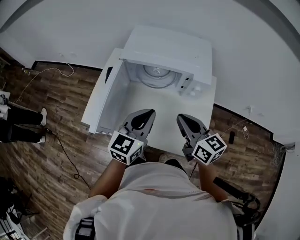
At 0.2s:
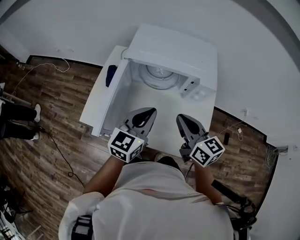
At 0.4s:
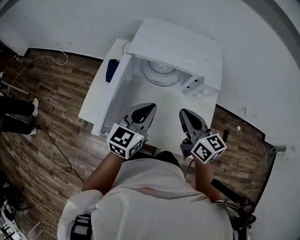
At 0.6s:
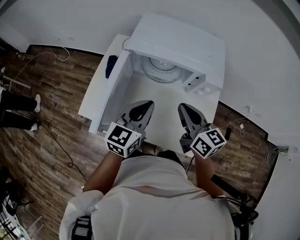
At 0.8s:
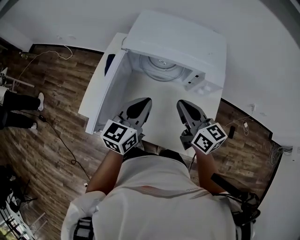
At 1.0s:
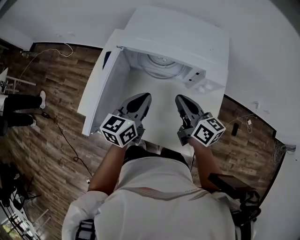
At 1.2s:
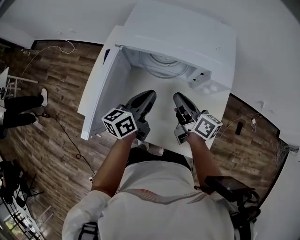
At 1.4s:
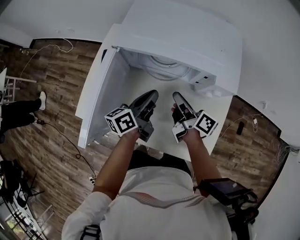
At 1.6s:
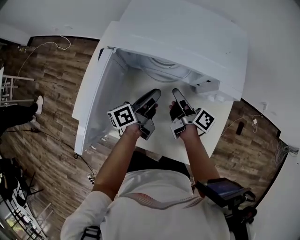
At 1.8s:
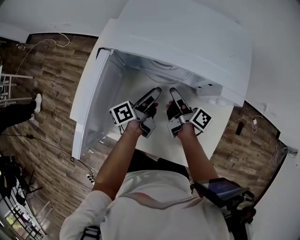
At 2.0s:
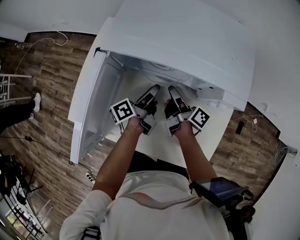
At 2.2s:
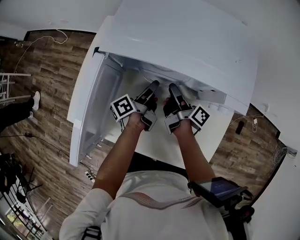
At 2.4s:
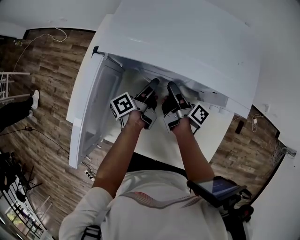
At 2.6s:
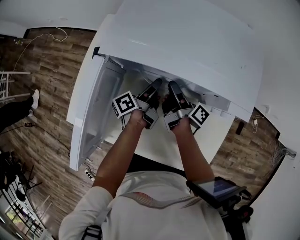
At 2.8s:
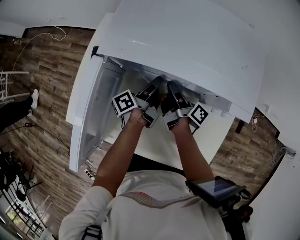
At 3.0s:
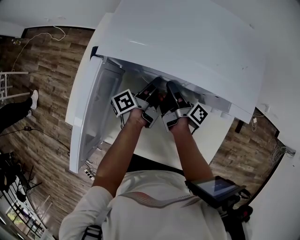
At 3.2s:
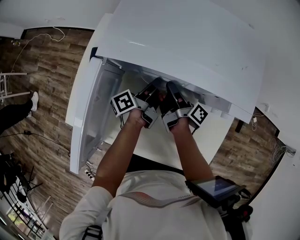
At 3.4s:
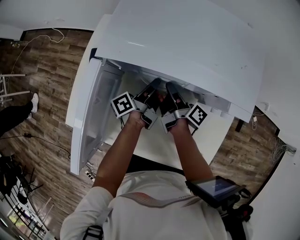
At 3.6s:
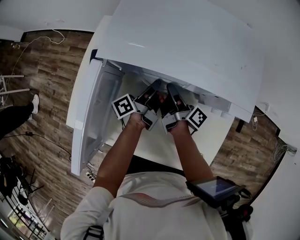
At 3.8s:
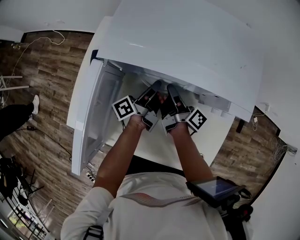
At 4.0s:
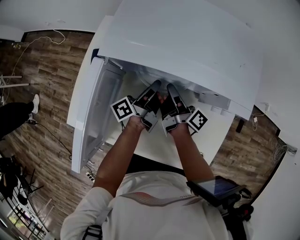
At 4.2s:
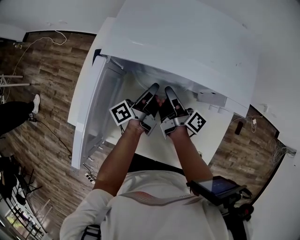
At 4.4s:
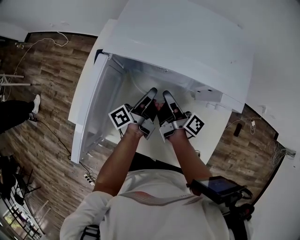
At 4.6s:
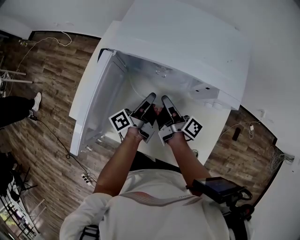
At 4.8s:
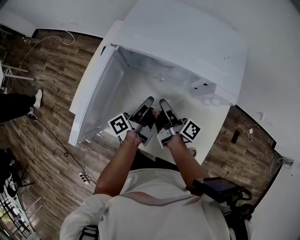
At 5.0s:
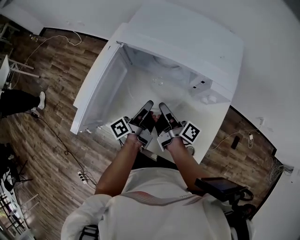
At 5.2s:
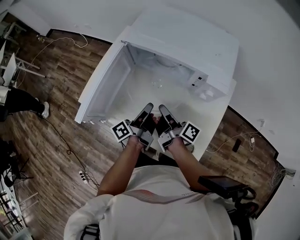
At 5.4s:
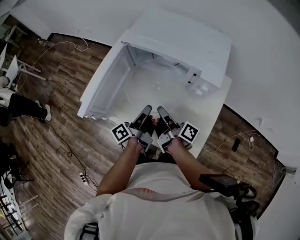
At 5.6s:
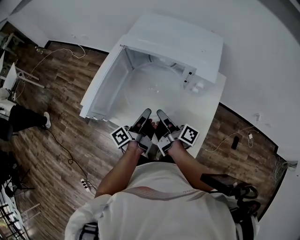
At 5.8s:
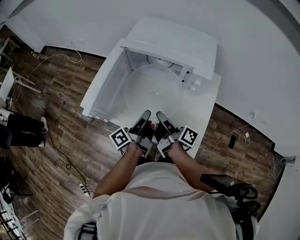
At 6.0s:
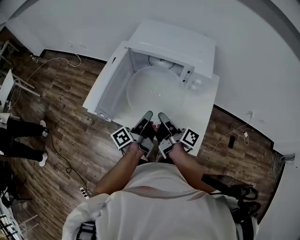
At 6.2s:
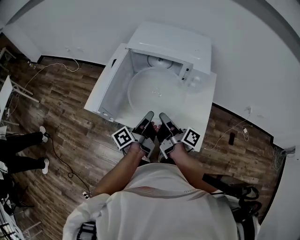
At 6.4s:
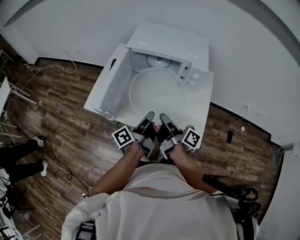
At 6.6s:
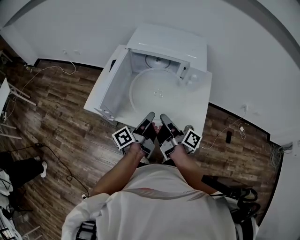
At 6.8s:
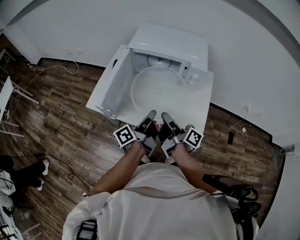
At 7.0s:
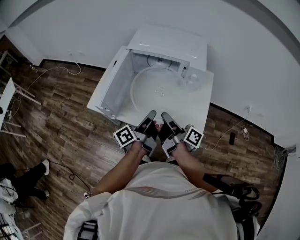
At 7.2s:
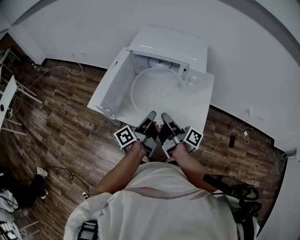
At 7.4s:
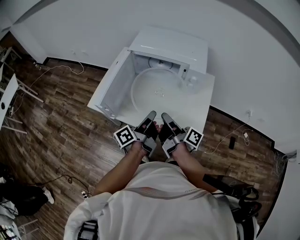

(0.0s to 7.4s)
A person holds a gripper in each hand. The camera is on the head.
0.0s - 1.4s: Both grippers move downward and forward, roughly 25 cm. The left gripper rolls counterclockwise, seen from behind, by roughly 50 degrees. Meanwhile the right gripper twists some 50 degrees clockwise, seen from behind, and opens.
1.4s - 3.0s: Both grippers travel together downward and forward, approximately 15 cm. The left gripper turns by some 30 degrees, and opens up. Meanwhile the right gripper swivels roughly 30 degrees, and opens, then closes again.
3.0s - 4.4s: The grippers both shift upward by roughly 5 cm.
4.4s - 6.0s: The grippers both shift backward and upward by about 25 cm.
6.0s - 7.4s: Both grippers move backward, approximately 10 cm.

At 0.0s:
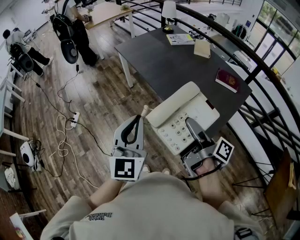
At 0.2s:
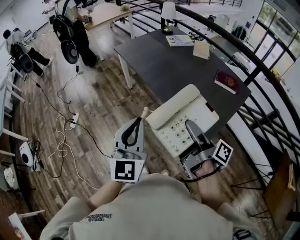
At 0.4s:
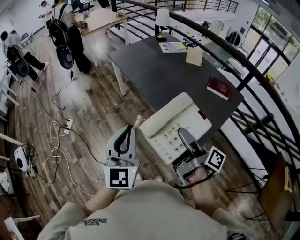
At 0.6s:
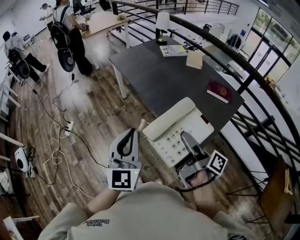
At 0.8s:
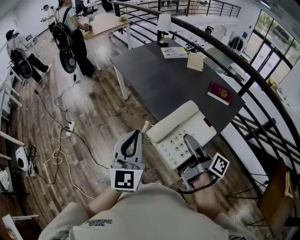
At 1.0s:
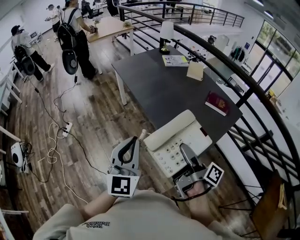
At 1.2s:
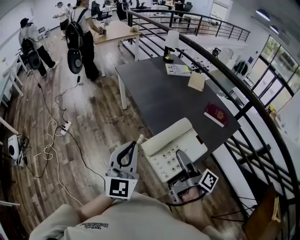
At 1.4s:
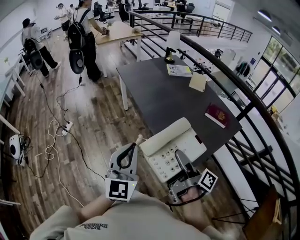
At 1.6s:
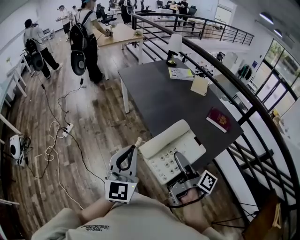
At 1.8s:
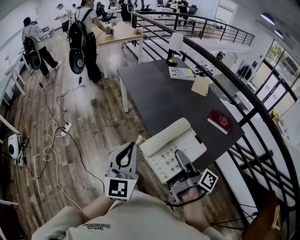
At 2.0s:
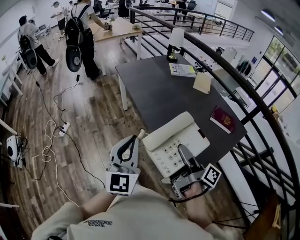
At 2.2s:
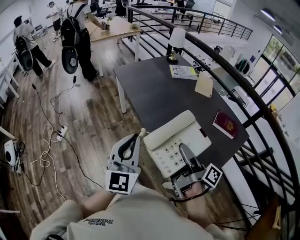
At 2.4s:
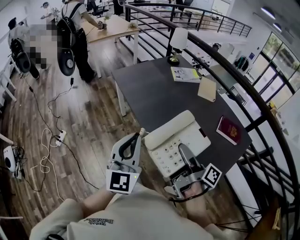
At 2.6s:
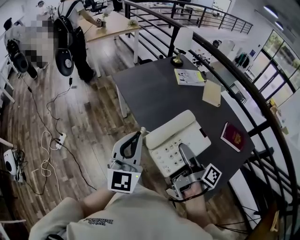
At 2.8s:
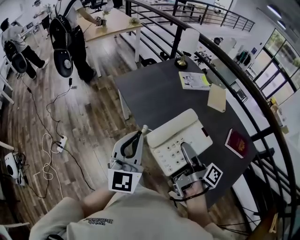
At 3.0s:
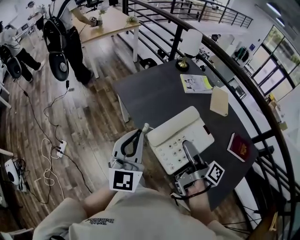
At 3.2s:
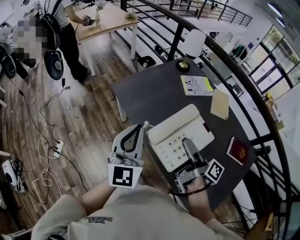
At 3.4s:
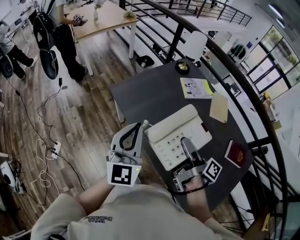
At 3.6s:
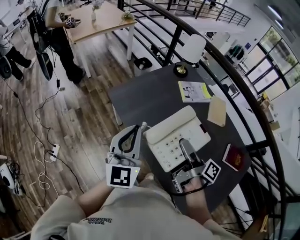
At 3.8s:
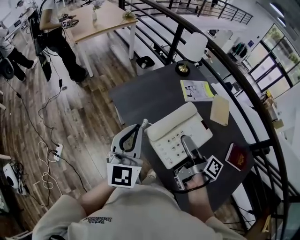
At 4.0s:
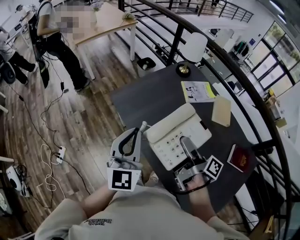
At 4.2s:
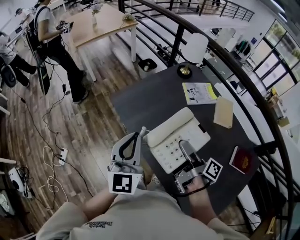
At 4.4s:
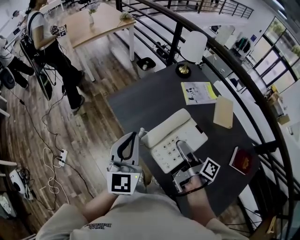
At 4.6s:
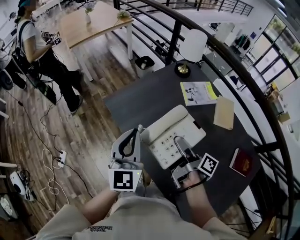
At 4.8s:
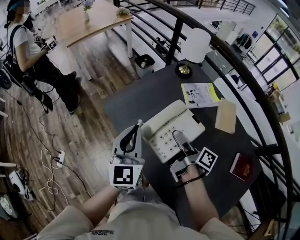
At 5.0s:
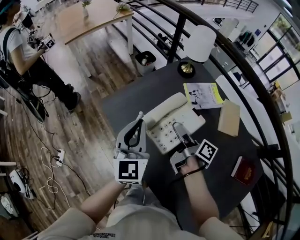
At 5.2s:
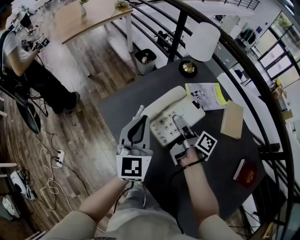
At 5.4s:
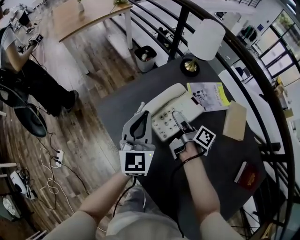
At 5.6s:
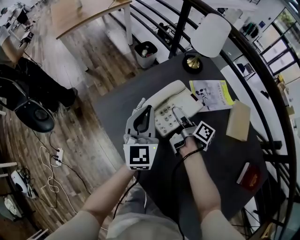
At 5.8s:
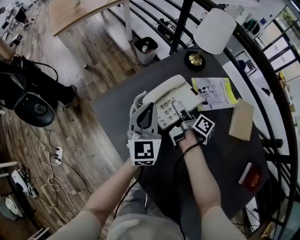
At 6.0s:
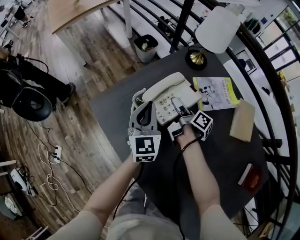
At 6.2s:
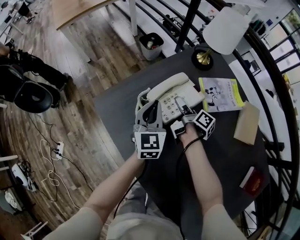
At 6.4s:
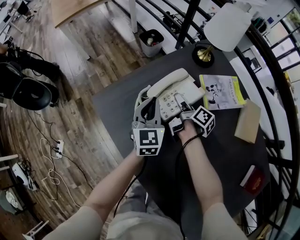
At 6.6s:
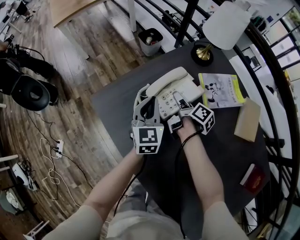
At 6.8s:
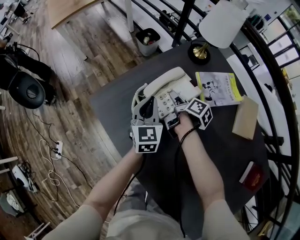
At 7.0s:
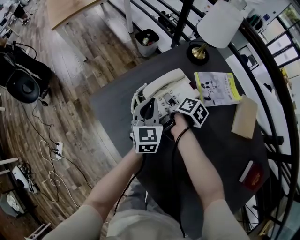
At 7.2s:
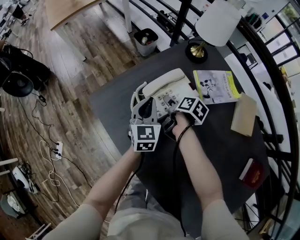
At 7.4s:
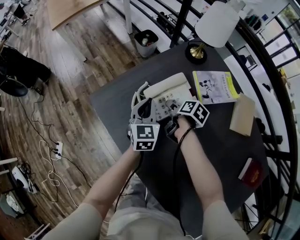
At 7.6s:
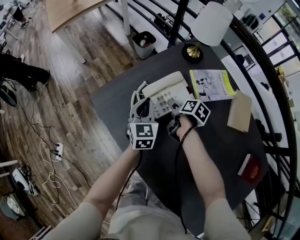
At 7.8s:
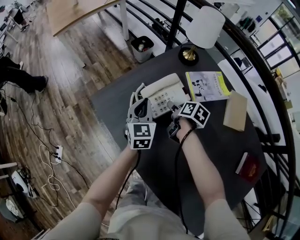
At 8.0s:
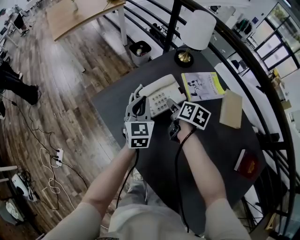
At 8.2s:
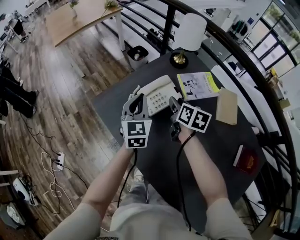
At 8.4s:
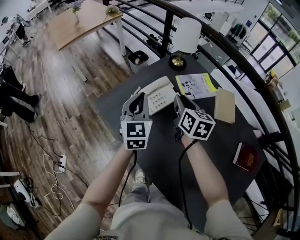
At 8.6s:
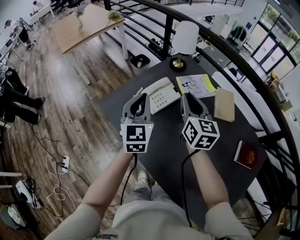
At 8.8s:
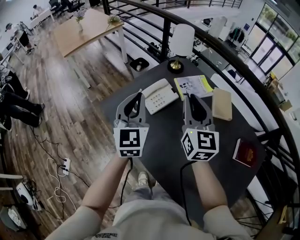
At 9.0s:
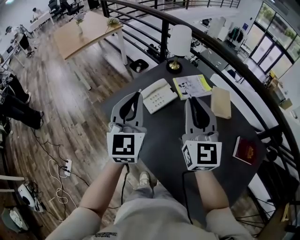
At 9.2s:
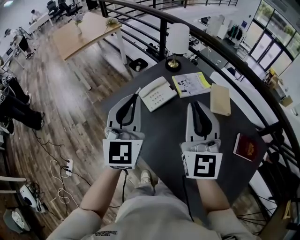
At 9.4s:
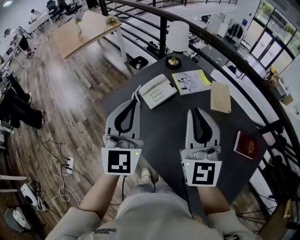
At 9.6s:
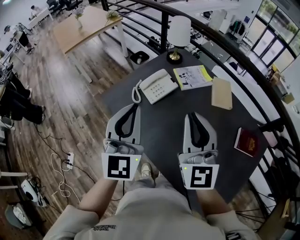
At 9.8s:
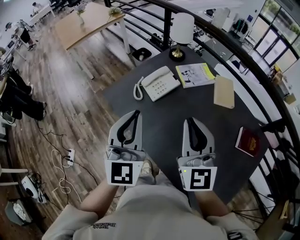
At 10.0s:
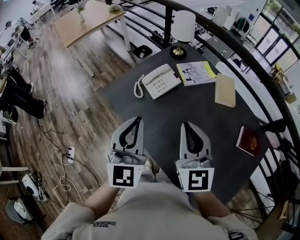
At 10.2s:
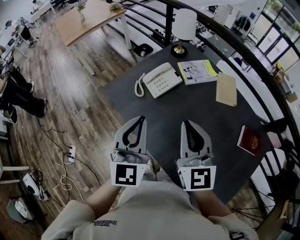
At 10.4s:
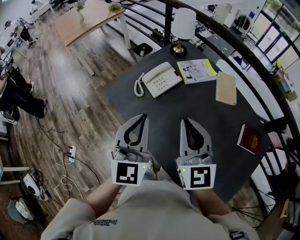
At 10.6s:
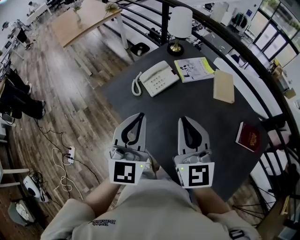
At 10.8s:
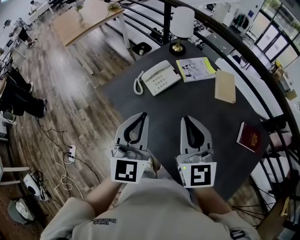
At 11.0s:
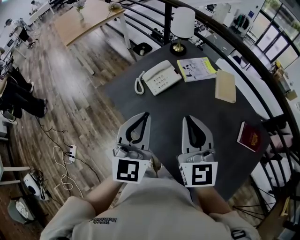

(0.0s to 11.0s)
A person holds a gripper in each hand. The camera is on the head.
0.0s - 1.6s: Both grippers travel together to the right, approximately 5 cm.
1.6s - 3.2s: Both grippers are carried forward, approximately 50 cm.
3.2s - 4.8s: The grippers both shift forward by approximately 20 cm.
4.8s - 6.2s: The right gripper is displaced forward and downward by some 30 cm; the left gripper goes some 30 cm downward, forward and to the right.
6.2s - 7.8s: The right gripper is displaced backward by some 5 cm, tips its fingers downward by some 30 degrees, and opens up.
7.8s - 9.4s: Both grippers travel together upward and backward, some 50 cm. The left gripper swivels some 30 degrees, while the right gripper angles its fingers upward, by approximately 60 degrees, and closes.
9.4s - 11.0s: The left gripper moves downward and backward, about 10 cm. The right gripper moves downward, about 5 cm.

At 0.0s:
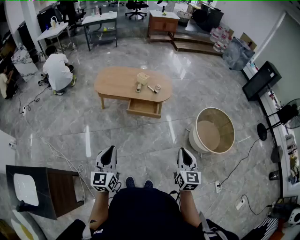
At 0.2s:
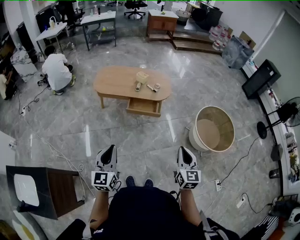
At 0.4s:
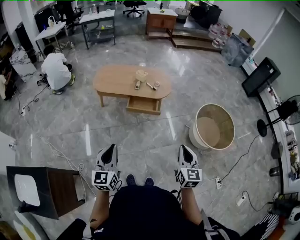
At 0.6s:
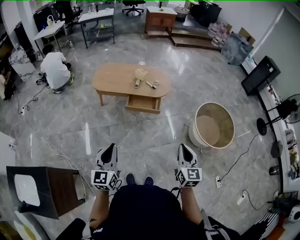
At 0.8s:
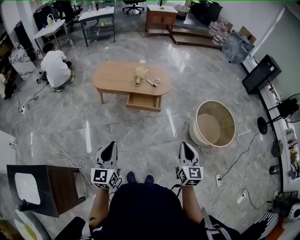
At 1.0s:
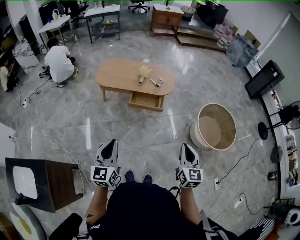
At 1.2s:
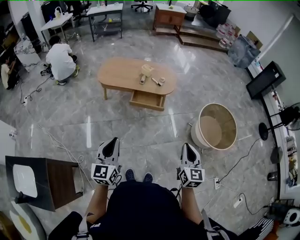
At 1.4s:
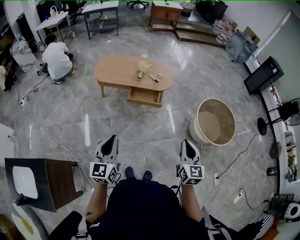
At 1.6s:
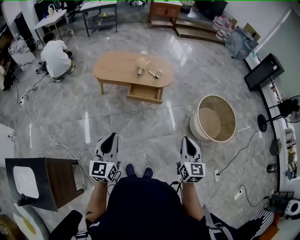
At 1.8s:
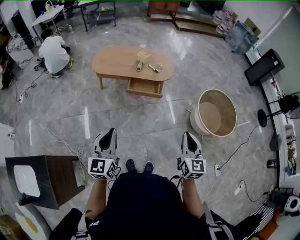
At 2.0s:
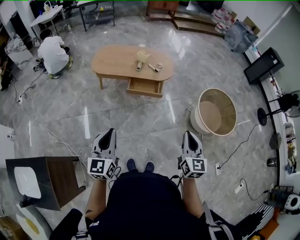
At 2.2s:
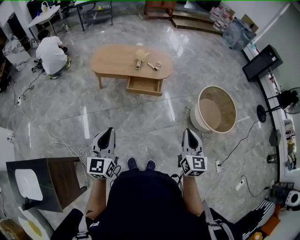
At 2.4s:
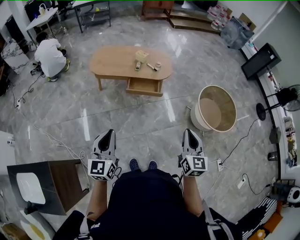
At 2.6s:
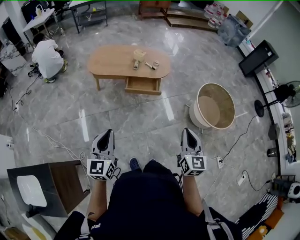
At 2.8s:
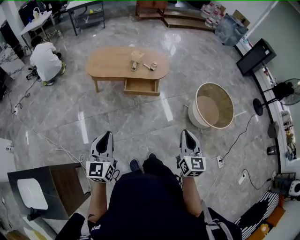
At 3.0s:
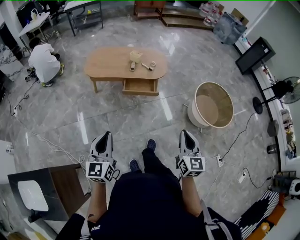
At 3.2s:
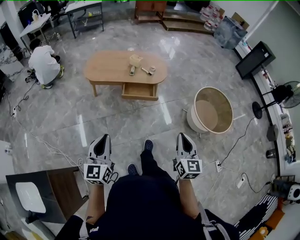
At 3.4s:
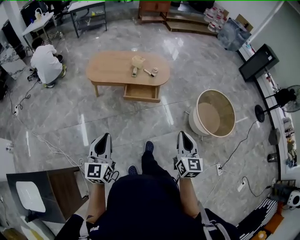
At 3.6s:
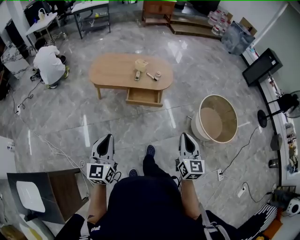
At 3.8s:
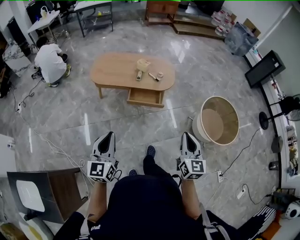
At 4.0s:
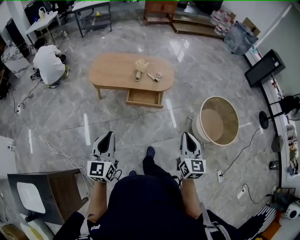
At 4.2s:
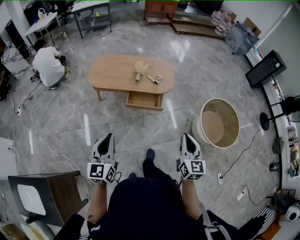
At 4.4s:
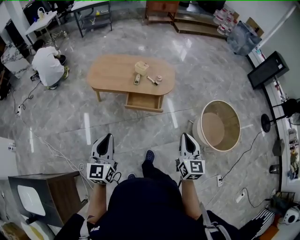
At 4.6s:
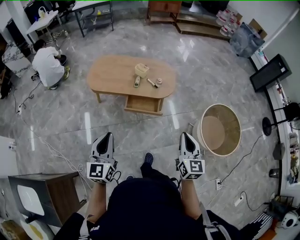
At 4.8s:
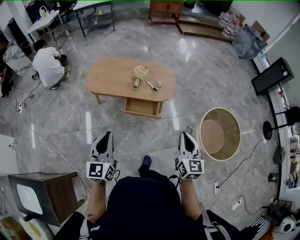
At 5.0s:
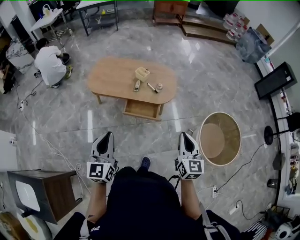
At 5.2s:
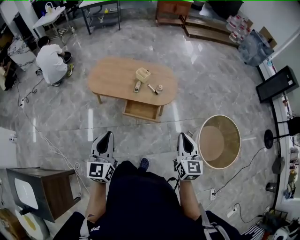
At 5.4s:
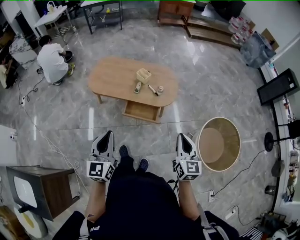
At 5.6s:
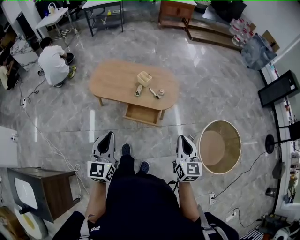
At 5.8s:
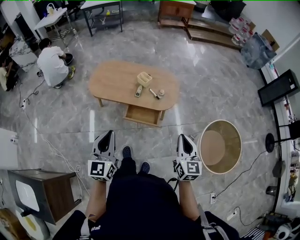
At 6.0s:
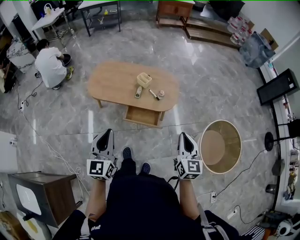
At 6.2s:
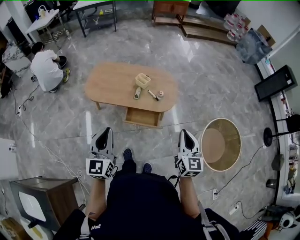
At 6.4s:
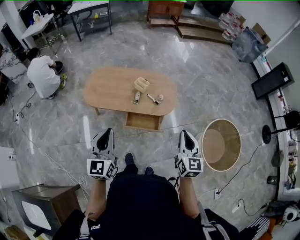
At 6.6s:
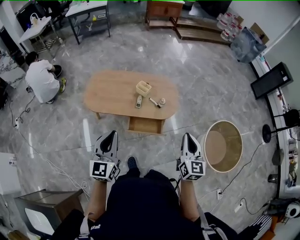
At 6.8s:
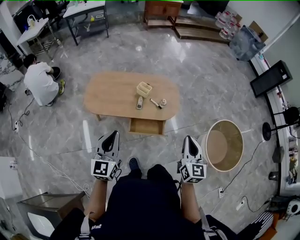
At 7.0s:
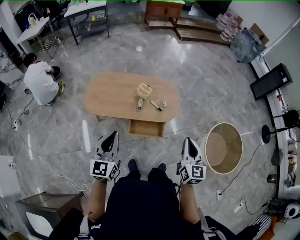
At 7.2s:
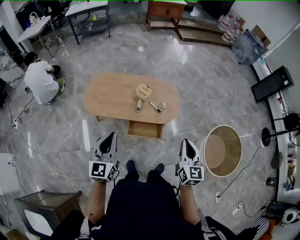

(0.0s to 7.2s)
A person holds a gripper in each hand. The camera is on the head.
0.0s - 1.4s: Neither gripper changes place.
1.4s - 2.8s: The grippers both shift to the left by roughly 5 cm.
2.8s - 4.4s: Both grippers travel together forward, roughly 20 cm.
4.4s - 5.8s: The left gripper heads forward and to the right, covering about 15 cm; the right gripper is displaced forward by roughly 15 cm.
5.8s - 7.2s: Both grippers move forward and to the left, about 15 cm.
